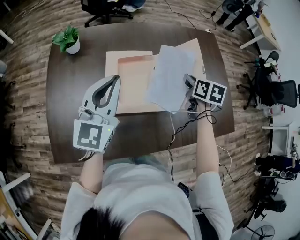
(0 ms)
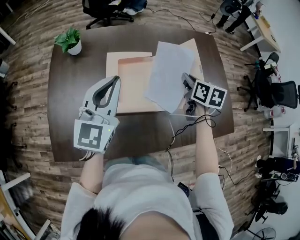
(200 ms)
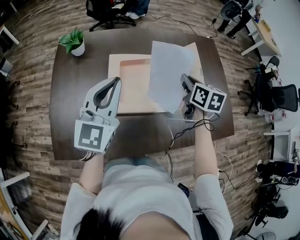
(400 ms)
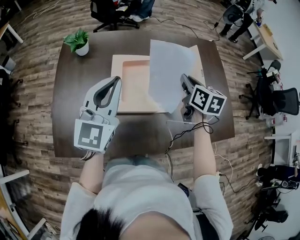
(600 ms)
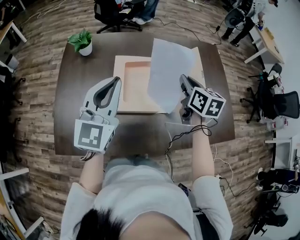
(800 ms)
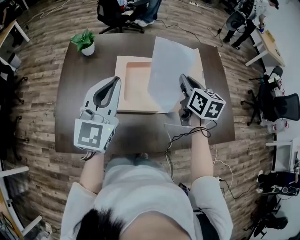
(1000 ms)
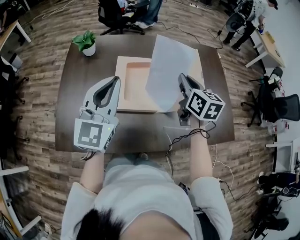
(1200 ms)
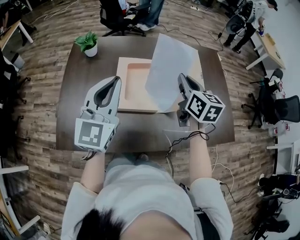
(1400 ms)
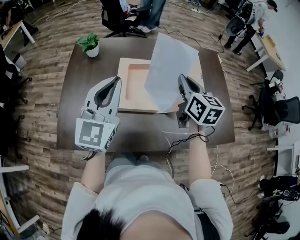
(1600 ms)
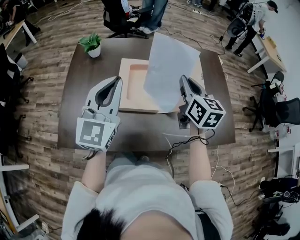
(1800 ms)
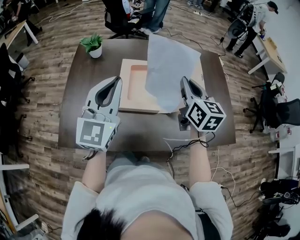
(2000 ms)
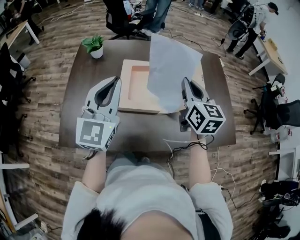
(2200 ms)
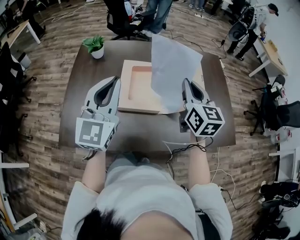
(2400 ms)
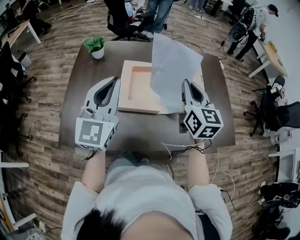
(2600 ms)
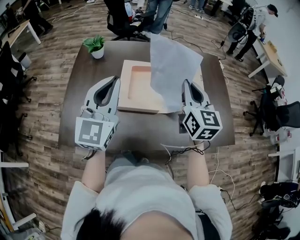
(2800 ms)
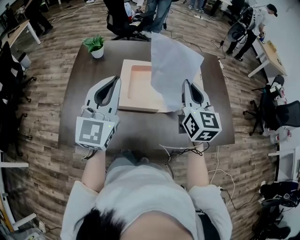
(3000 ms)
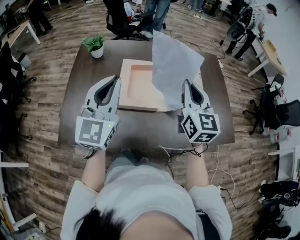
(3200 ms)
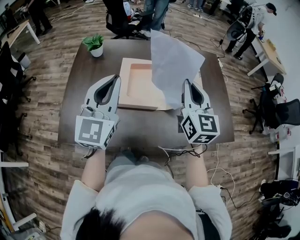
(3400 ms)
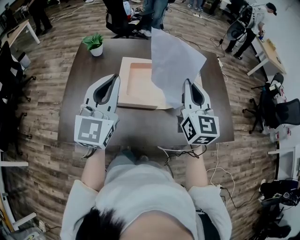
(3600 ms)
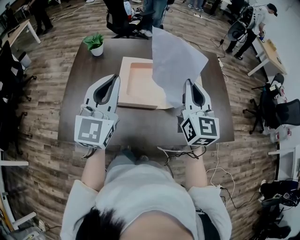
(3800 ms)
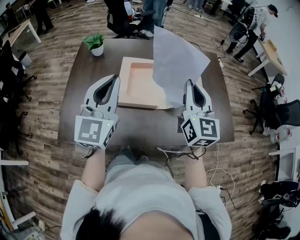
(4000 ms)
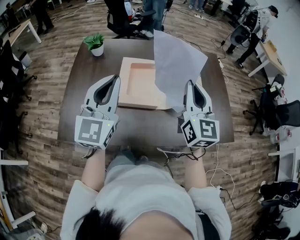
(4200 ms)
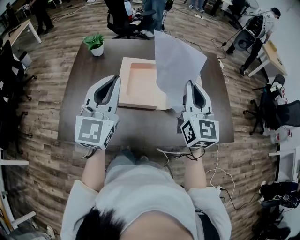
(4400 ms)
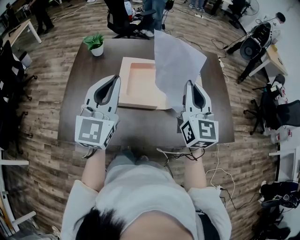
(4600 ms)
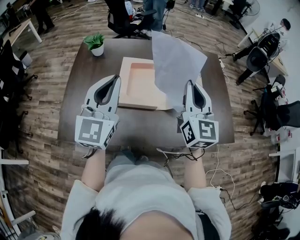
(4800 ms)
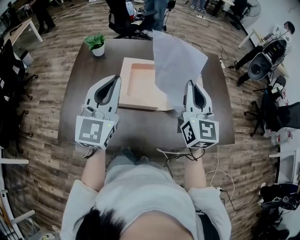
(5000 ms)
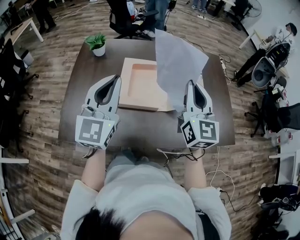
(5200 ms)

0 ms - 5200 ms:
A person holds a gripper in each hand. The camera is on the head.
0 ms - 1800 ms: The right gripper travels upward, backward and to the left by some 20 cm, and rotates roughly 30 degrees. Meanwhile the left gripper moves backward and upward, roughly 10 cm.
1800 ms - 3400 ms: The right gripper heads backward, covering approximately 5 cm.
3400 ms - 5200 ms: The grippers move only a little.

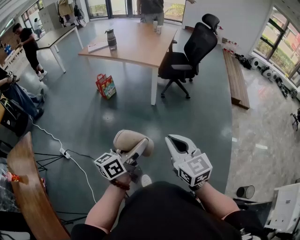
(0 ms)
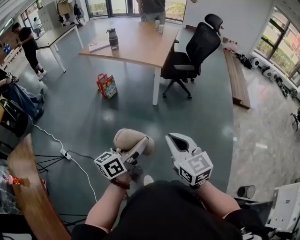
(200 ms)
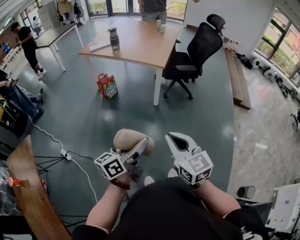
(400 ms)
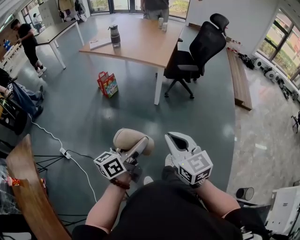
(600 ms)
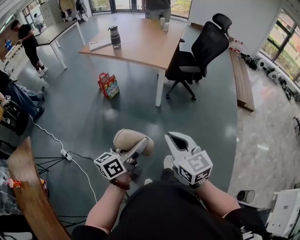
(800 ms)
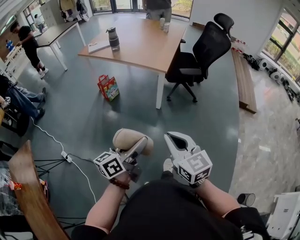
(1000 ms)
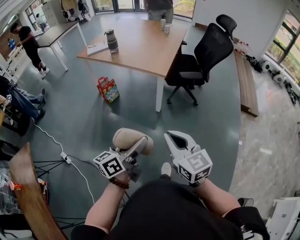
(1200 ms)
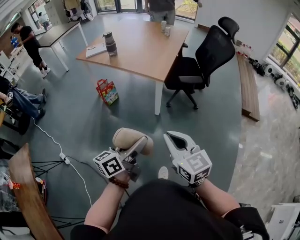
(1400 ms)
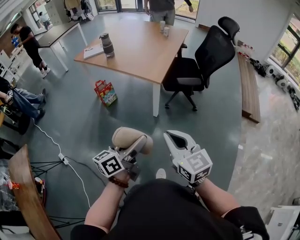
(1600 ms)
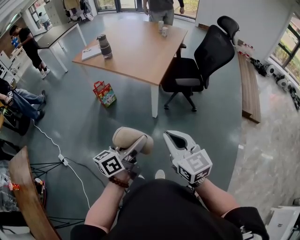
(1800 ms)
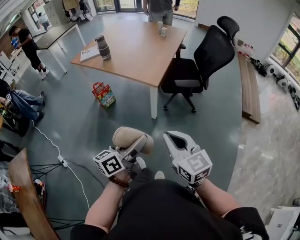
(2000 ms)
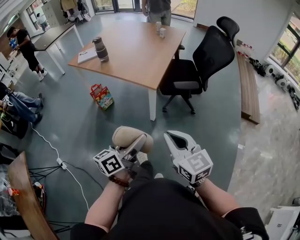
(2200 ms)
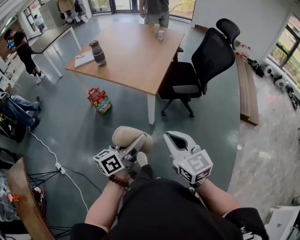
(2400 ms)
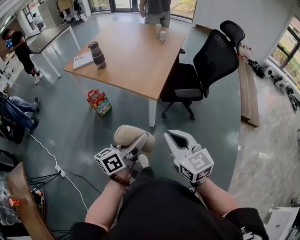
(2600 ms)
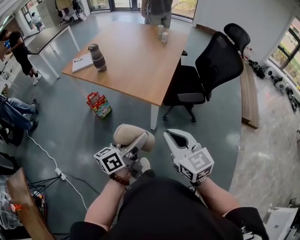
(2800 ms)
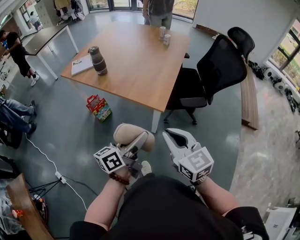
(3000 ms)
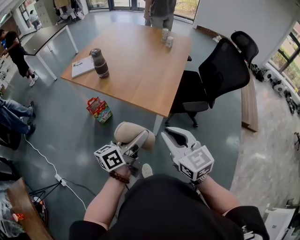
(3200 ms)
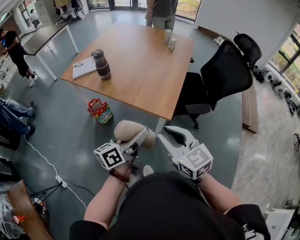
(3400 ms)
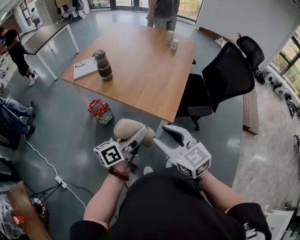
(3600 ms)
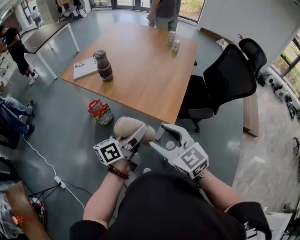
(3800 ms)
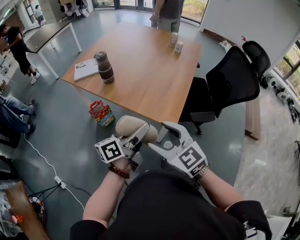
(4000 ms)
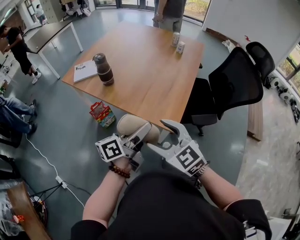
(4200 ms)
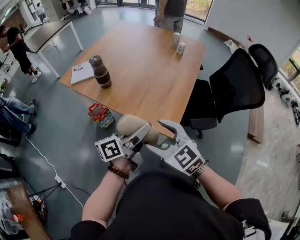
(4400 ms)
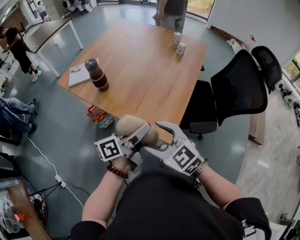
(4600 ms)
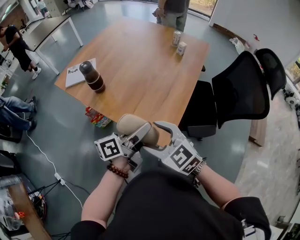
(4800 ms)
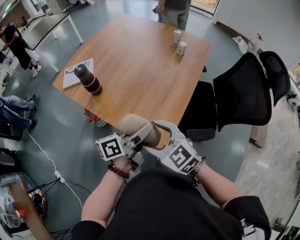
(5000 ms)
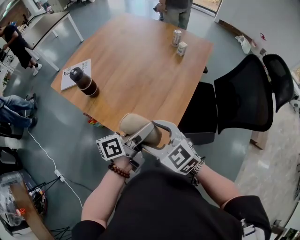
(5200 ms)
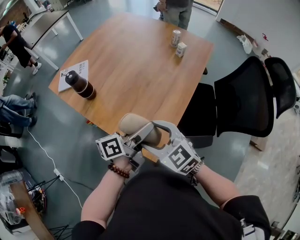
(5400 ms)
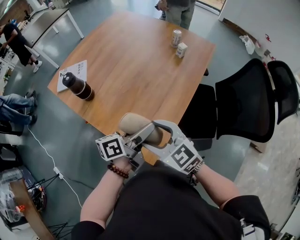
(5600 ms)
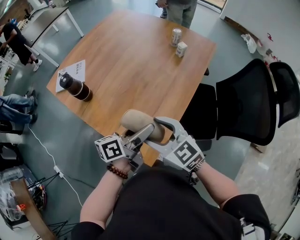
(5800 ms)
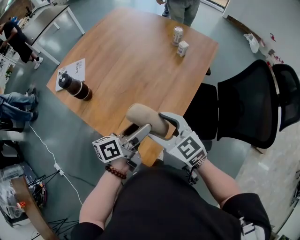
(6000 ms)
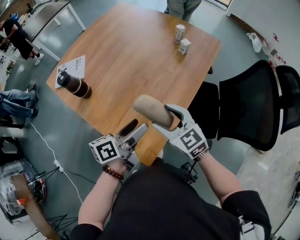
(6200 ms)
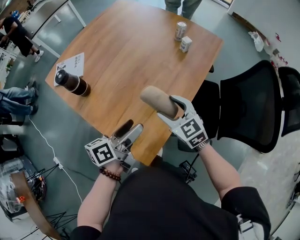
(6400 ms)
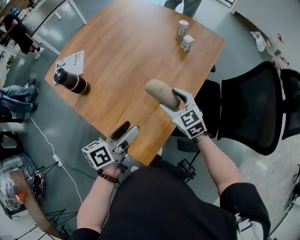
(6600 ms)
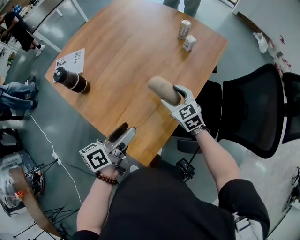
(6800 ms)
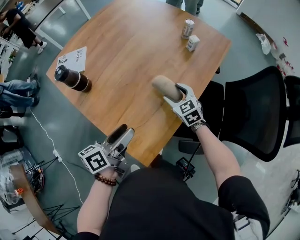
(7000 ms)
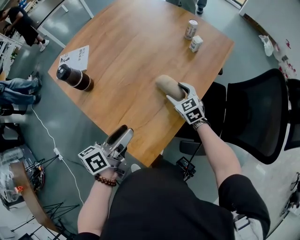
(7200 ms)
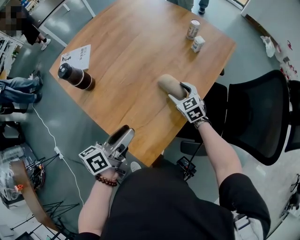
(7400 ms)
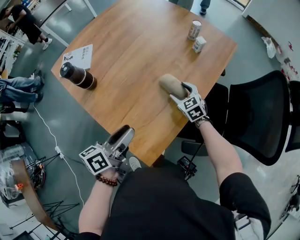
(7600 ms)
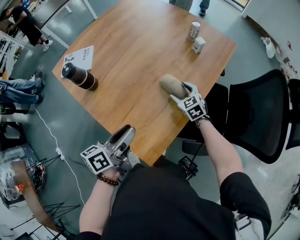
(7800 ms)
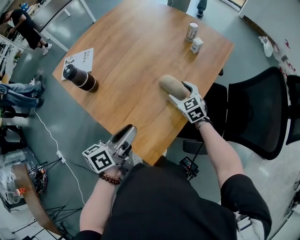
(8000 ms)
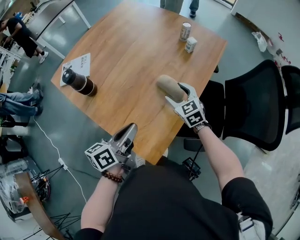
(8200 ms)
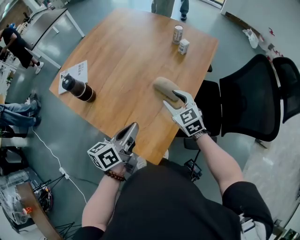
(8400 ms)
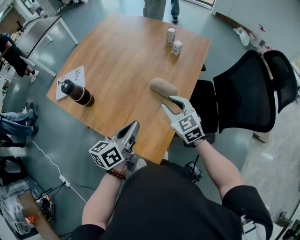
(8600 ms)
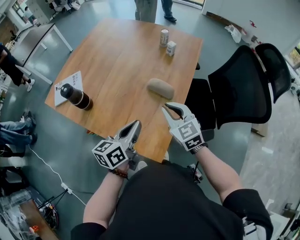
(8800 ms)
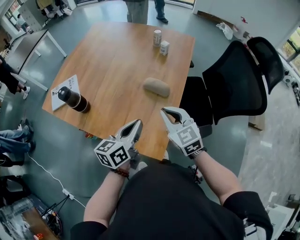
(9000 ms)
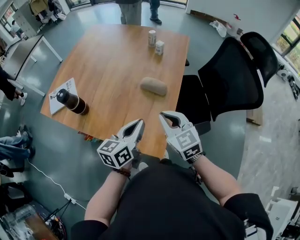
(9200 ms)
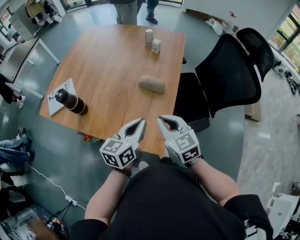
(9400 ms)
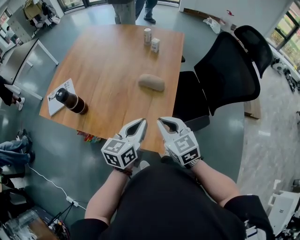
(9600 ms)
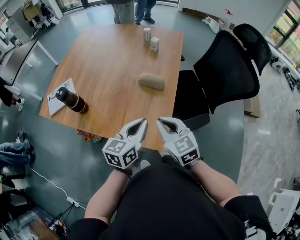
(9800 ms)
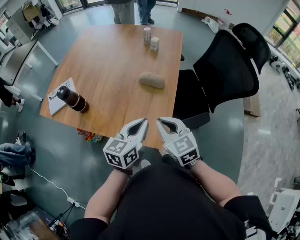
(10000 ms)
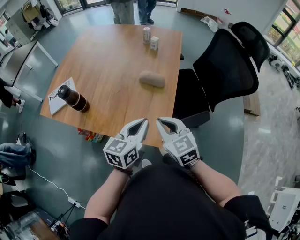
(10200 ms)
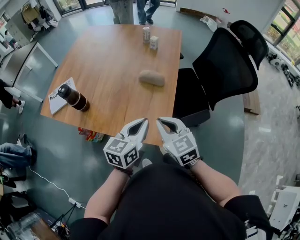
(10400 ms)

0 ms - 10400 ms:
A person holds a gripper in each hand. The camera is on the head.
0 ms - 1400 ms: The grippers both shift forward by approximately 20 cm.
1400 ms - 3000 ms: The two grippers go about 25 cm forward.
3000 ms - 4400 ms: The left gripper is displaced forward by approximately 20 cm. The right gripper shifts roughly 20 cm forward and to the left, changes its angle by approximately 30 degrees, and opens.
4400 ms - 6000 ms: Both grippers travel together forward and to the right, about 25 cm.
6000 ms - 7400 ms: The left gripper shifts some 5 cm to the left, and closes its fingers. Meanwhile the right gripper shifts some 25 cm downward, forward and to the right, and changes its angle by about 20 degrees.
7400 ms - 9000 ms: The left gripper rotates some 30 degrees, and closes, while the right gripper is displaced upward and backward by approximately 25 cm, rotates some 20 degrees, and closes its fingers.
9000 ms - 10400 ms: The right gripper travels backward by approximately 10 cm; the left gripper goes about 5 cm backward.

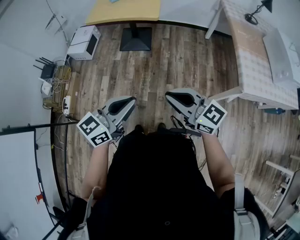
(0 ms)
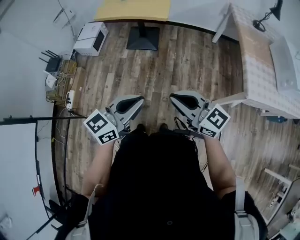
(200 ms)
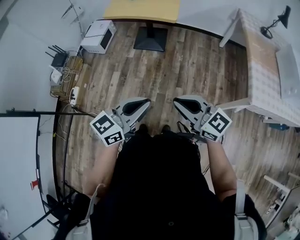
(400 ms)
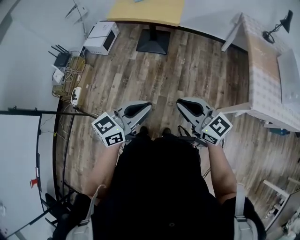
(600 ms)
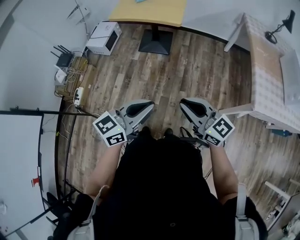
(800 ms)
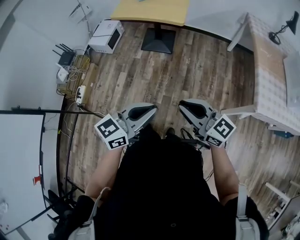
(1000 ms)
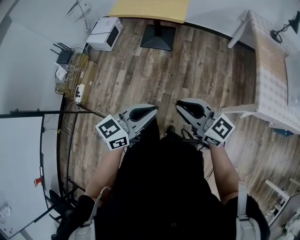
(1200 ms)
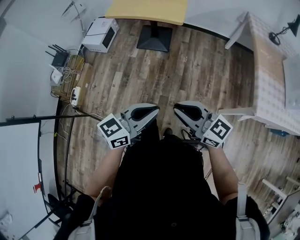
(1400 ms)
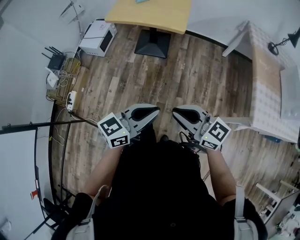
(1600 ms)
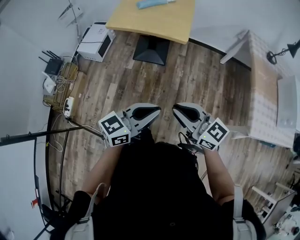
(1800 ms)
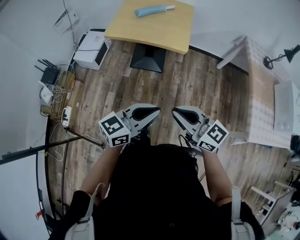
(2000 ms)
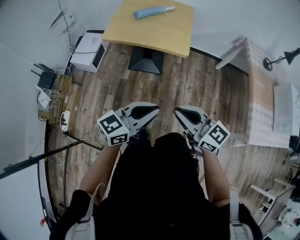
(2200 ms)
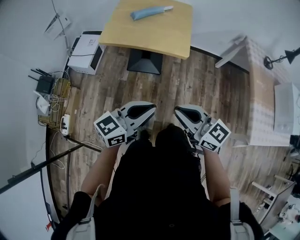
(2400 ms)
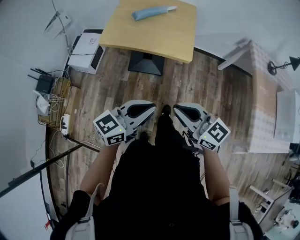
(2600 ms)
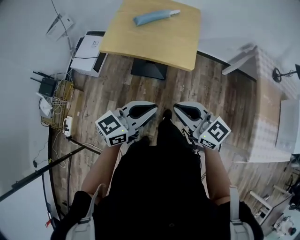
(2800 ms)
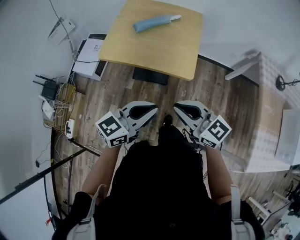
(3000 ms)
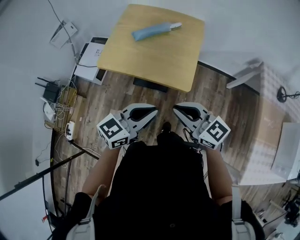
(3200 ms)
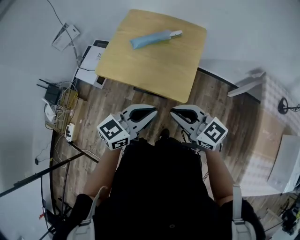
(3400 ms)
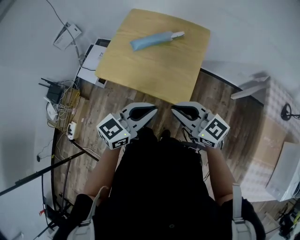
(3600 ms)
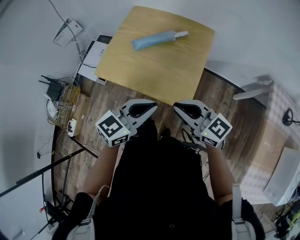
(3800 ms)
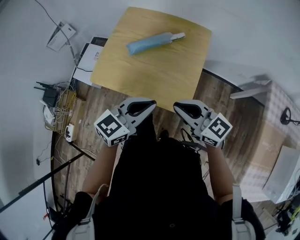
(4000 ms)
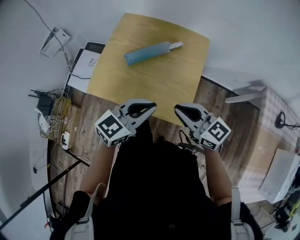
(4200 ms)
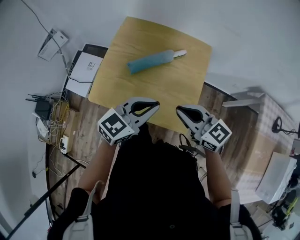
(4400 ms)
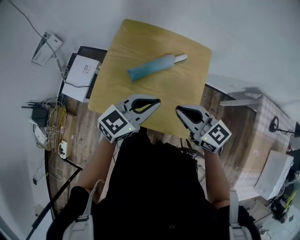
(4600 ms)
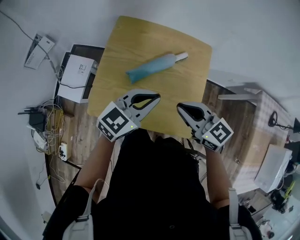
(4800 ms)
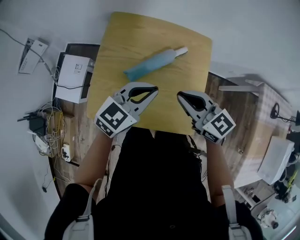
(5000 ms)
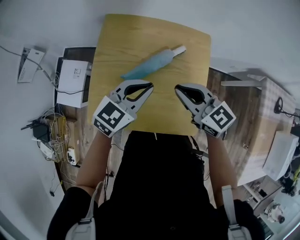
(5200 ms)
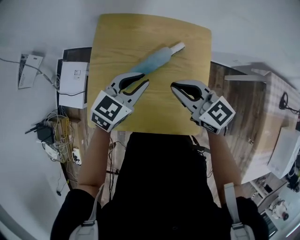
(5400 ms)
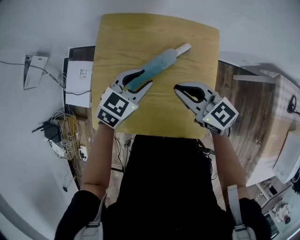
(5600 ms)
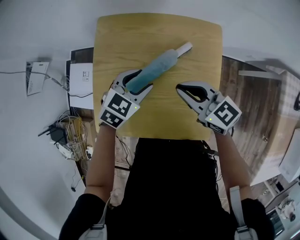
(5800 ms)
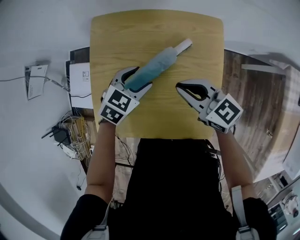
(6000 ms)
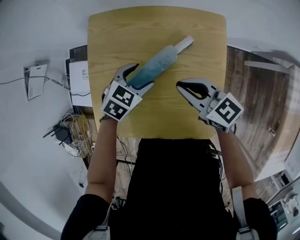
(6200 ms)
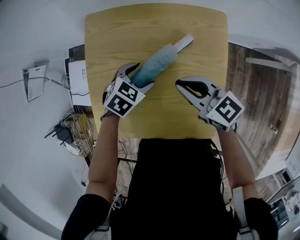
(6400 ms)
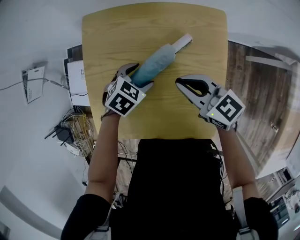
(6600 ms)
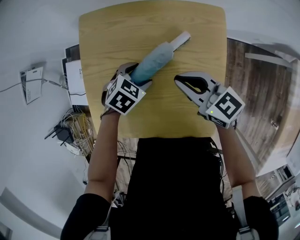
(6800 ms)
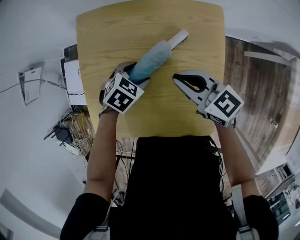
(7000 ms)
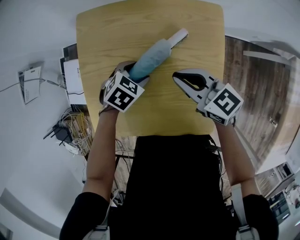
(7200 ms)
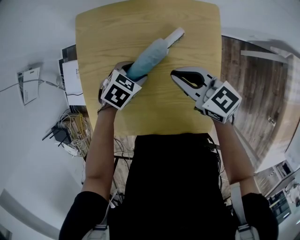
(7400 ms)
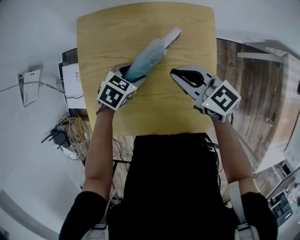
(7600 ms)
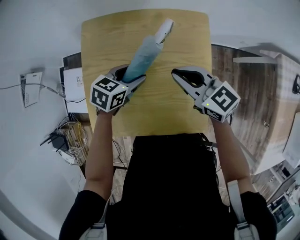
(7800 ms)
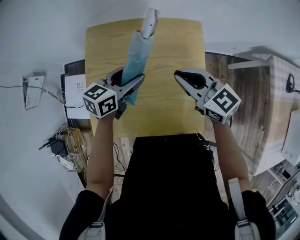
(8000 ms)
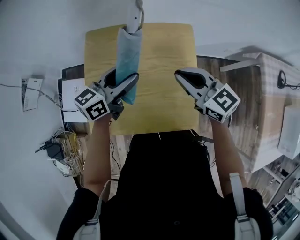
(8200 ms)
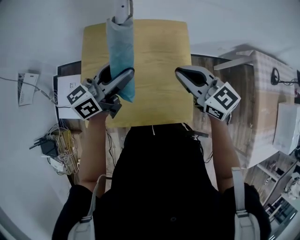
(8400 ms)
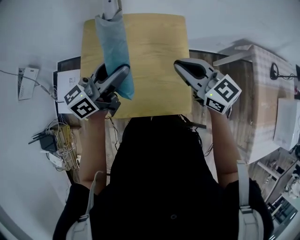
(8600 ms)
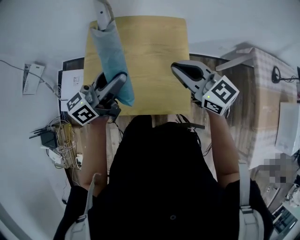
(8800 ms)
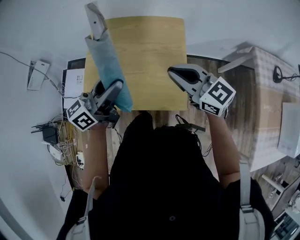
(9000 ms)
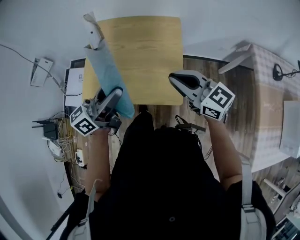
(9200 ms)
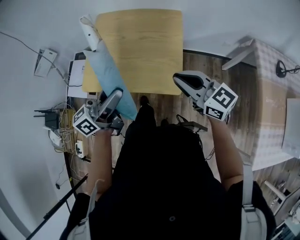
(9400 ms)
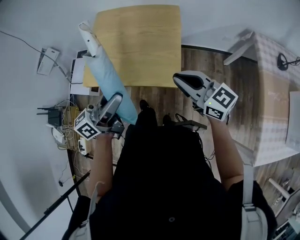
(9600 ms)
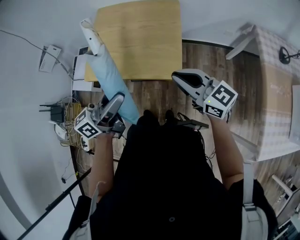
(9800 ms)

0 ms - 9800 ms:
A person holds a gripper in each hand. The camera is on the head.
0 ms - 1400 ms: The left gripper ends up about 5 cm from where it was.
1400 ms - 2800 ms: Both grippers travel together forward, approximately 35 cm.
2800 ms - 4200 ms: The grippers both shift forward by some 30 cm.
4200 ms - 5600 ms: The left gripper shifts about 30 cm forward and downward, rotates approximately 20 degrees, and opens up; the right gripper heads forward, covering about 20 cm.
5600 ms - 7000 ms: The left gripper is displaced downward by about 15 cm, turns by roughly 30 degrees, and opens, while the right gripper heads downward, covering about 5 cm.
7000 ms - 8400 ms: The left gripper is displaced upward by some 30 cm, and points its fingers roughly 70 degrees further upward. Meanwhile the right gripper travels upward and backward by roughly 20 cm.
8400 ms - 9800 ms: Both grippers travel together backward, some 35 cm.
